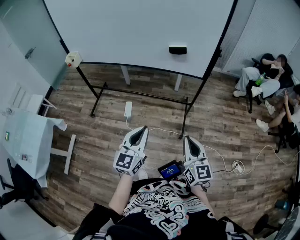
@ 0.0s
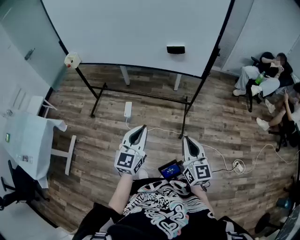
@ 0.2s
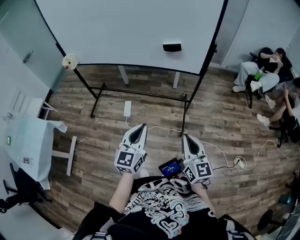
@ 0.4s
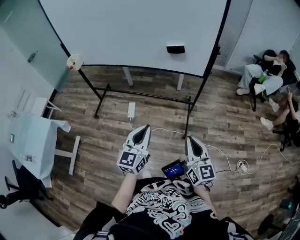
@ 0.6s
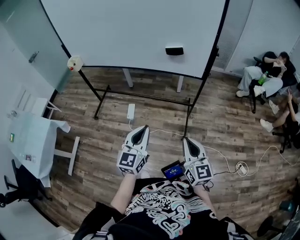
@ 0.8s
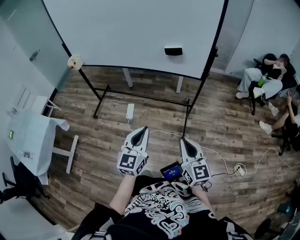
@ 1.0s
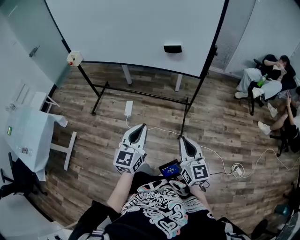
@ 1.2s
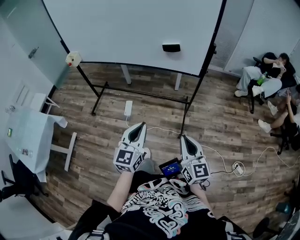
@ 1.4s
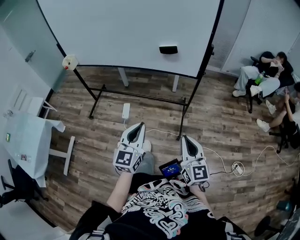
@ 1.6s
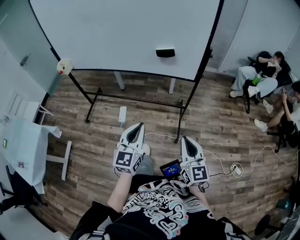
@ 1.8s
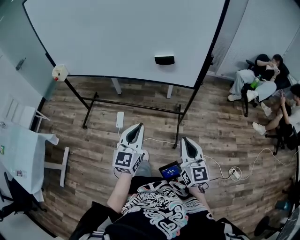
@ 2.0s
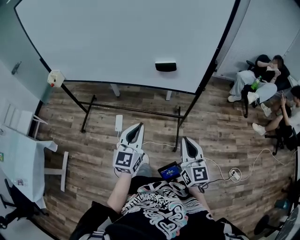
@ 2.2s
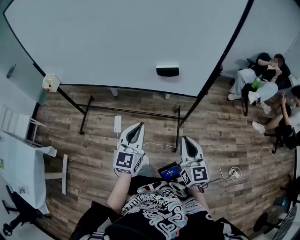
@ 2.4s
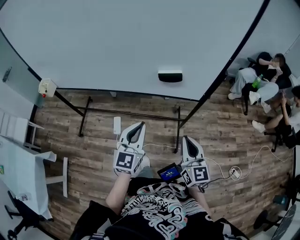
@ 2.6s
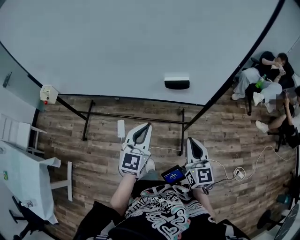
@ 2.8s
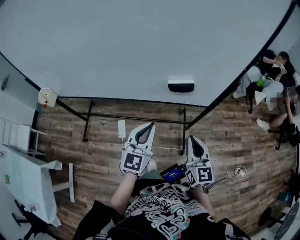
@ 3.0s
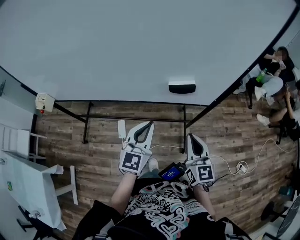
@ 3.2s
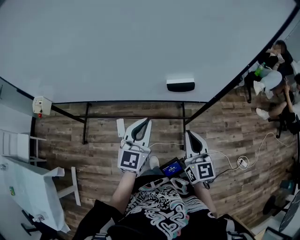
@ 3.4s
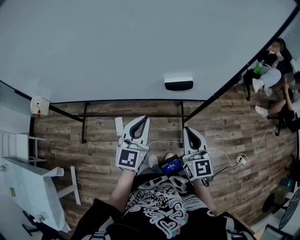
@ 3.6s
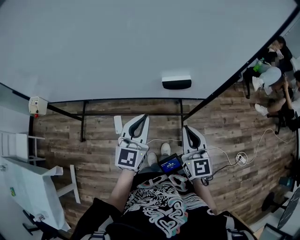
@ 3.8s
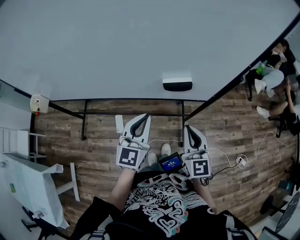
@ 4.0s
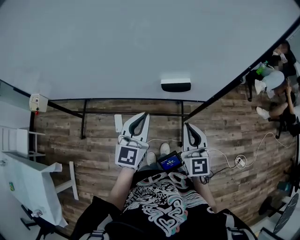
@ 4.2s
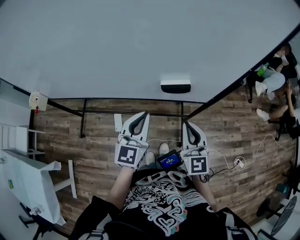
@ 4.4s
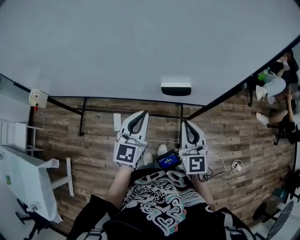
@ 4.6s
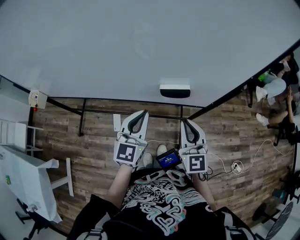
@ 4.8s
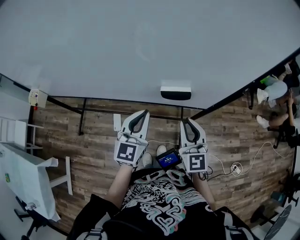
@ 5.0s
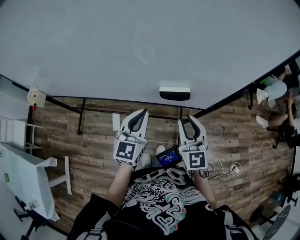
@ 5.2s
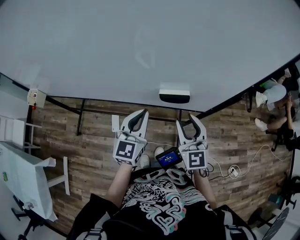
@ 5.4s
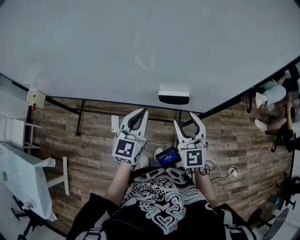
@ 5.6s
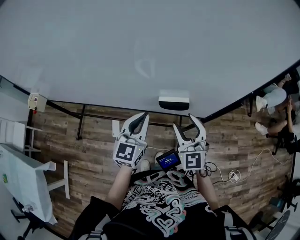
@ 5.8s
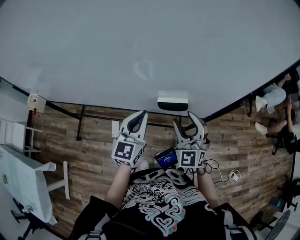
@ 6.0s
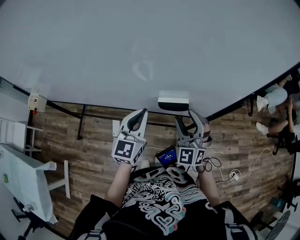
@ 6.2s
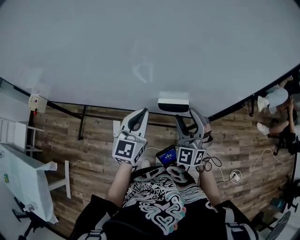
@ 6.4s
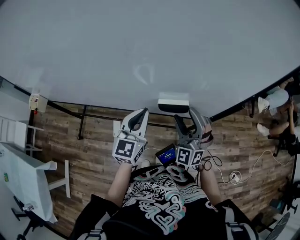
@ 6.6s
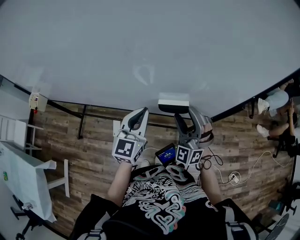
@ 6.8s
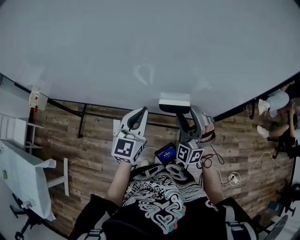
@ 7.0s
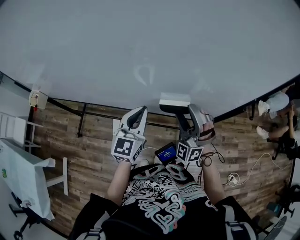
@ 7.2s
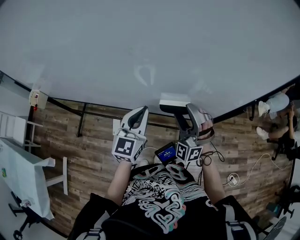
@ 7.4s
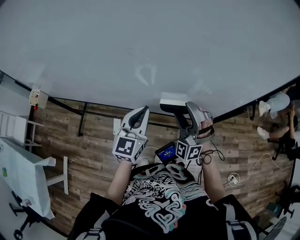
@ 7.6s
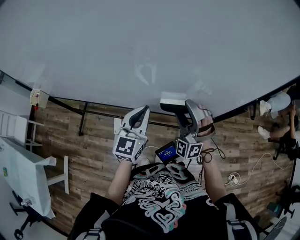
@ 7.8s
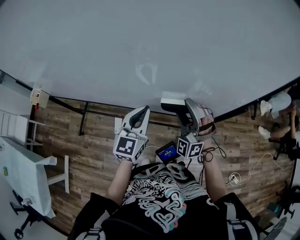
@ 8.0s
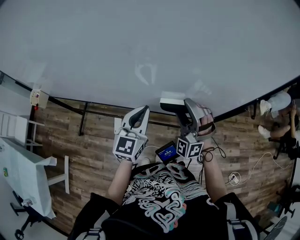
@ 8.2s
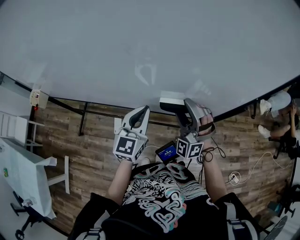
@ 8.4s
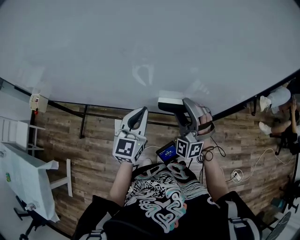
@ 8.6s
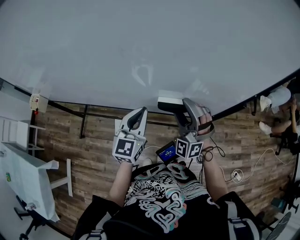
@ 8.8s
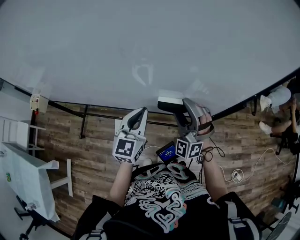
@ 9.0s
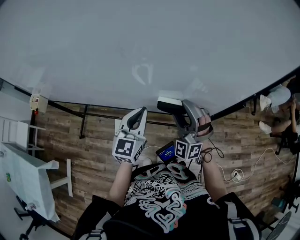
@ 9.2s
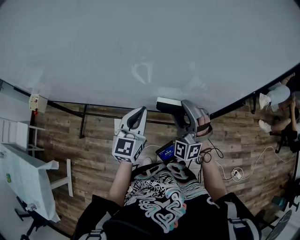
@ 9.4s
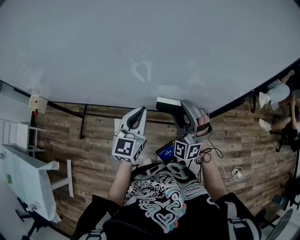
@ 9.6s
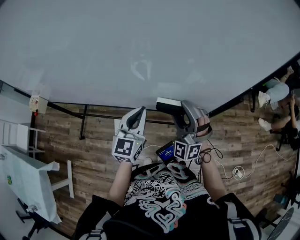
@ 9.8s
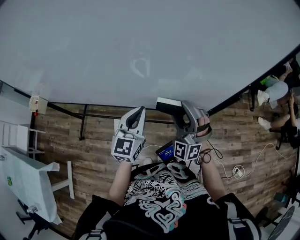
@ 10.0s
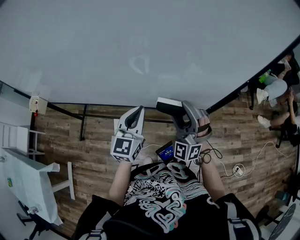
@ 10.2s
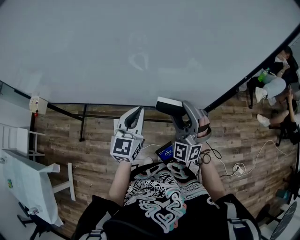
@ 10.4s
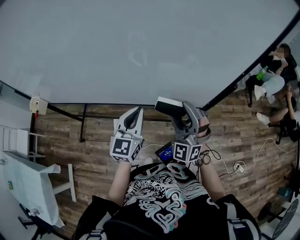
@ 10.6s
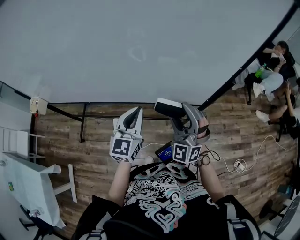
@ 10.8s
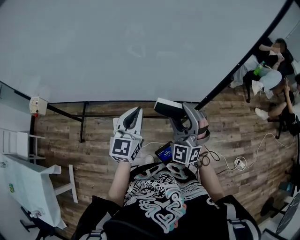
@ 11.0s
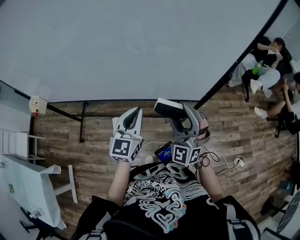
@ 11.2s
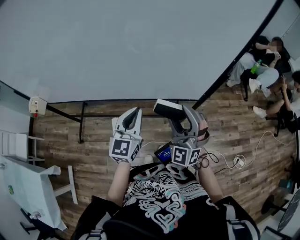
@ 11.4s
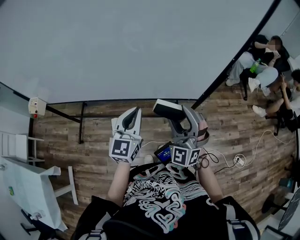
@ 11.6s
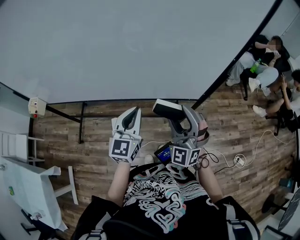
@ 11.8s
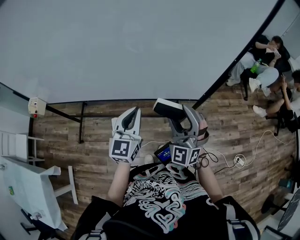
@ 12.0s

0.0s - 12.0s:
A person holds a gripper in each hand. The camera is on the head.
0.0s - 1.6s: The grippers stay close to where they were, moving slightly.
1.6s - 3.0s: Both grippers move forward, about 30 cm.
3.0s - 4.4s: Both grippers move forward, about 5 cm.
4.4s - 6.0s: Both grippers move forward, about 10 cm. The right gripper swivels about 30 degrees, and opens.
6.0s - 7.6s: The right gripper changes its angle by approximately 40 degrees, and opens.
7.6s - 9.0s: The two grippers keep their place.
9.0s - 10.4s: The right gripper is displaced backward by roughly 5 cm.
10.4s - 12.0s: The right gripper shifts about 5 cm backward. The left gripper moves about 5 cm.

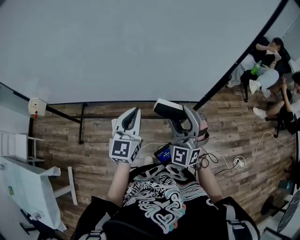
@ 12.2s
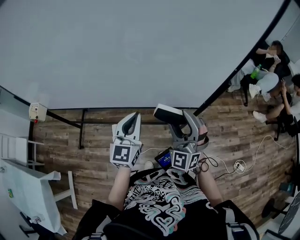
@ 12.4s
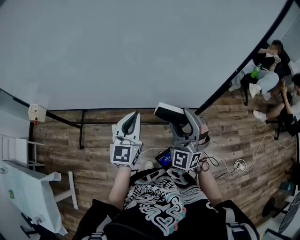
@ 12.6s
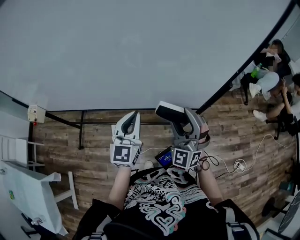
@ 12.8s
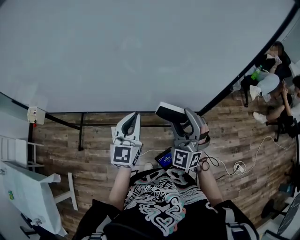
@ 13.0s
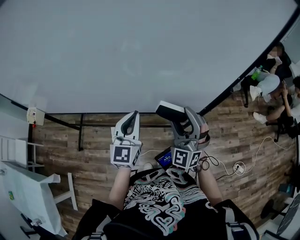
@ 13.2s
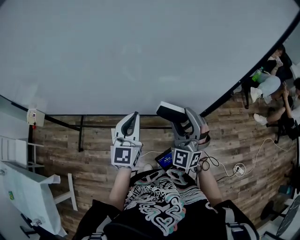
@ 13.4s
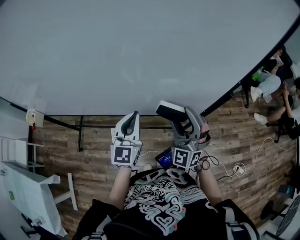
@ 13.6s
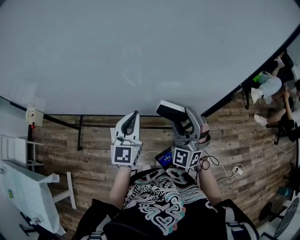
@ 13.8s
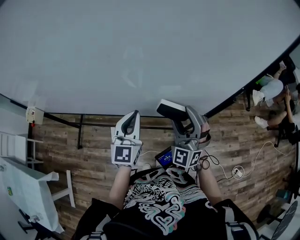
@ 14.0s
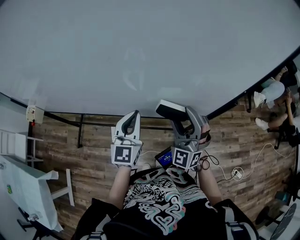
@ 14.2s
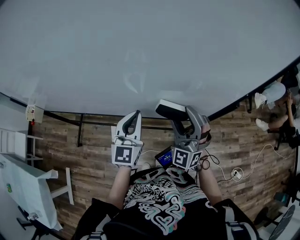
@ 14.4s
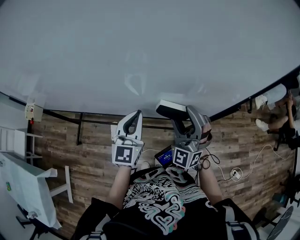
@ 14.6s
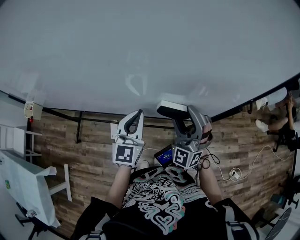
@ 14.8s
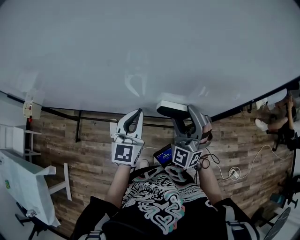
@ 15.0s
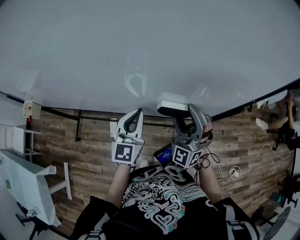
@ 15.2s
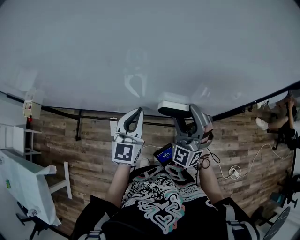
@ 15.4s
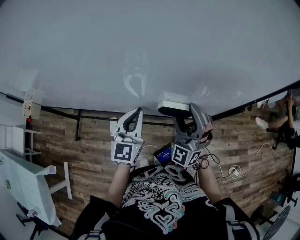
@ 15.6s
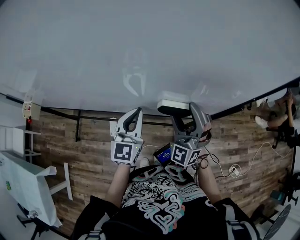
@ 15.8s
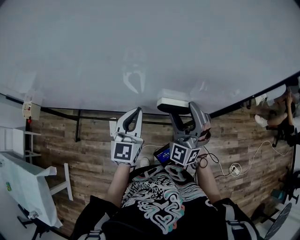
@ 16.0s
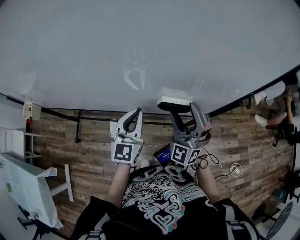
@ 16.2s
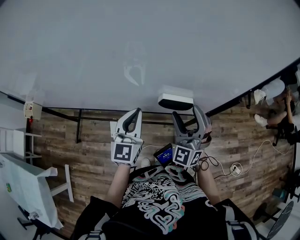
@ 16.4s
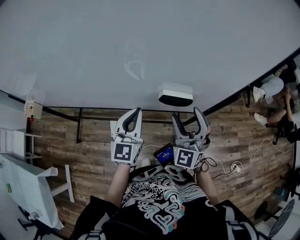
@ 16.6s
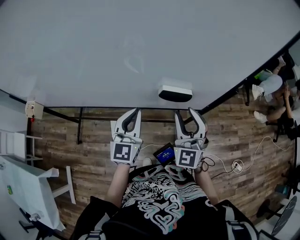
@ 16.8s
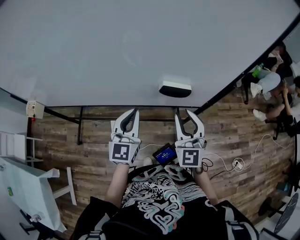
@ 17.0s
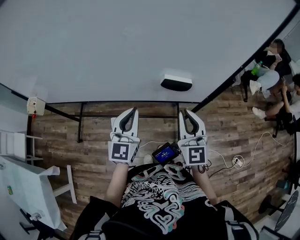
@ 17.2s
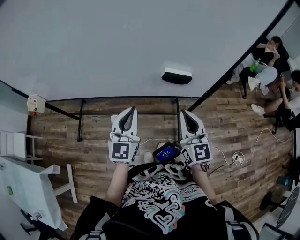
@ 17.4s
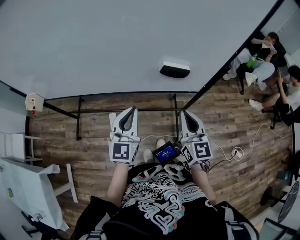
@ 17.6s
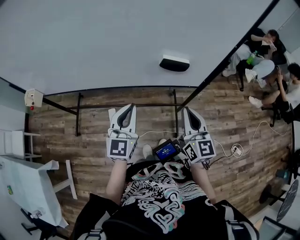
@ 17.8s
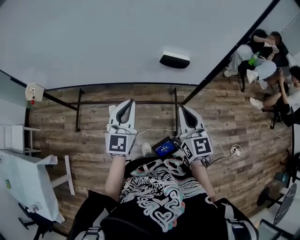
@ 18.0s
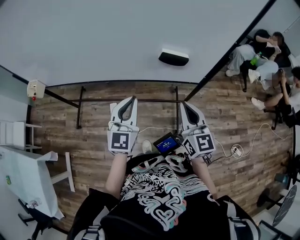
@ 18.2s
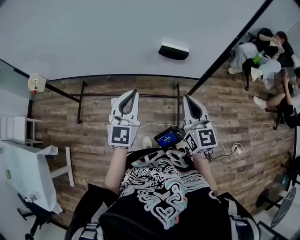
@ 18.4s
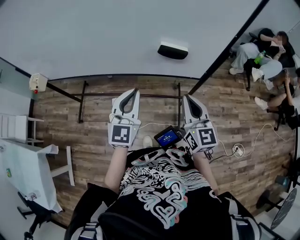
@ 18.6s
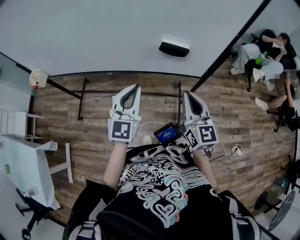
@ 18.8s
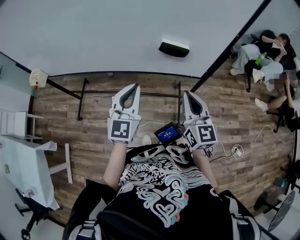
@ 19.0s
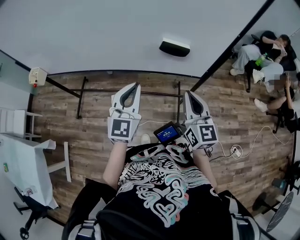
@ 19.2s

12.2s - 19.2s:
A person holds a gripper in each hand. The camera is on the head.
12.2s - 13.6s: Both grippers travel together forward, about 5 cm.
13.6s - 16.4s: The grippers stay close to where they were, moving slightly.
16.4s - 17.8s: The grippers both shift backward by about 15 cm. The right gripper rolls clockwise, seen from behind, by about 60 degrees, and closes up.
17.8s - 19.2s: The grippers stay close to where they were, moving slightly.

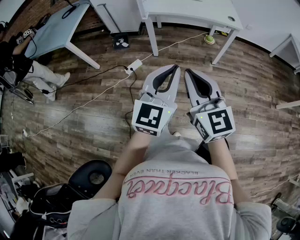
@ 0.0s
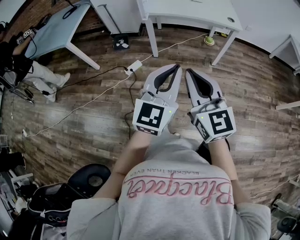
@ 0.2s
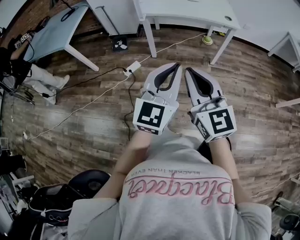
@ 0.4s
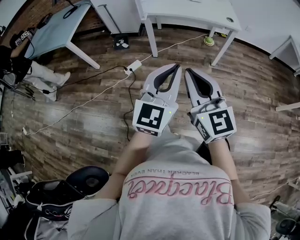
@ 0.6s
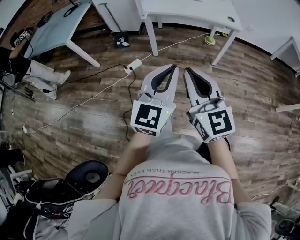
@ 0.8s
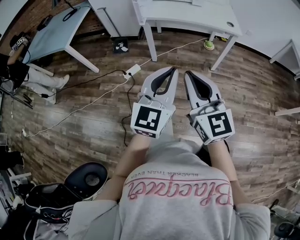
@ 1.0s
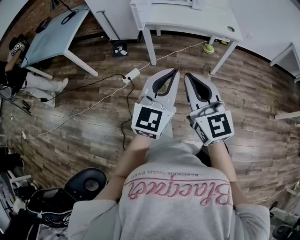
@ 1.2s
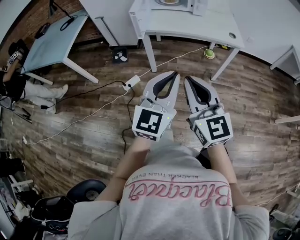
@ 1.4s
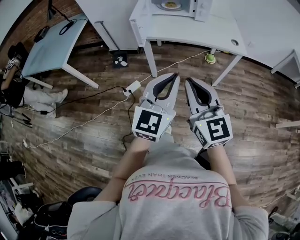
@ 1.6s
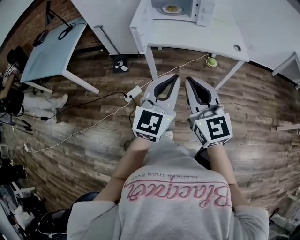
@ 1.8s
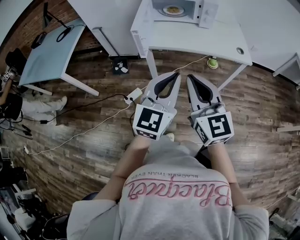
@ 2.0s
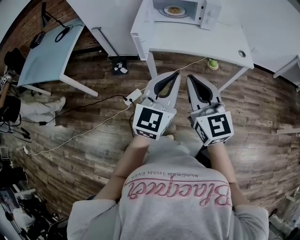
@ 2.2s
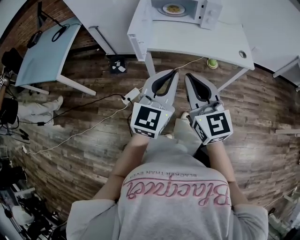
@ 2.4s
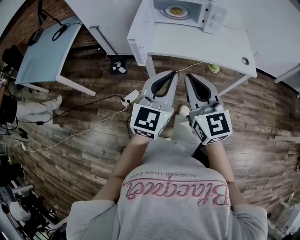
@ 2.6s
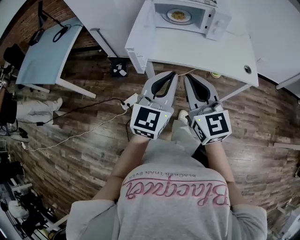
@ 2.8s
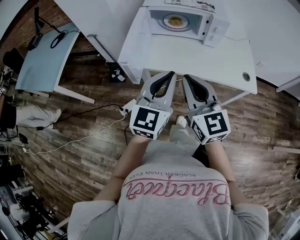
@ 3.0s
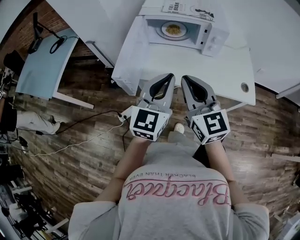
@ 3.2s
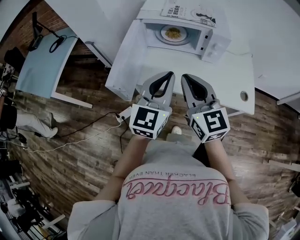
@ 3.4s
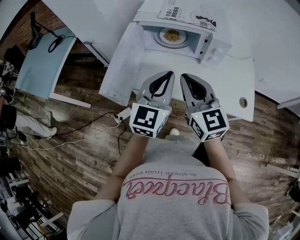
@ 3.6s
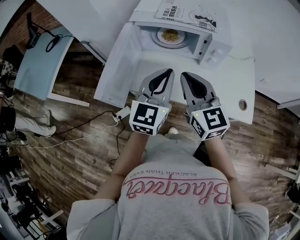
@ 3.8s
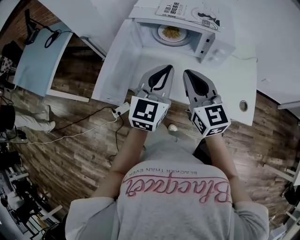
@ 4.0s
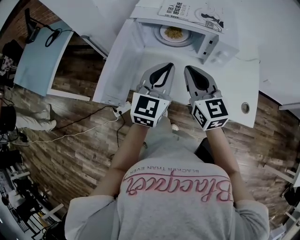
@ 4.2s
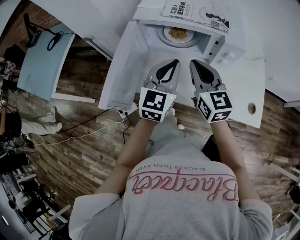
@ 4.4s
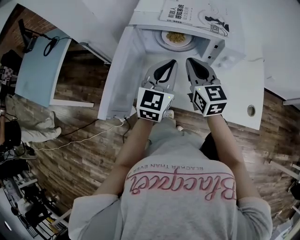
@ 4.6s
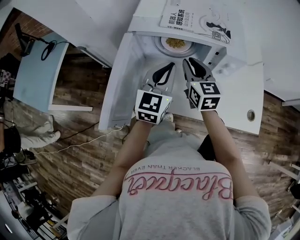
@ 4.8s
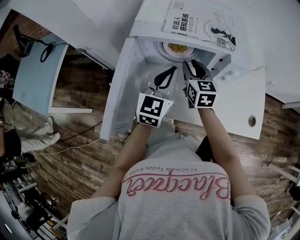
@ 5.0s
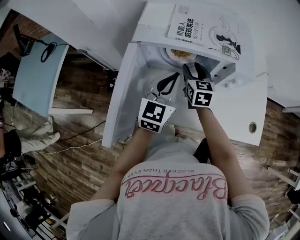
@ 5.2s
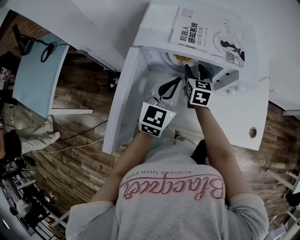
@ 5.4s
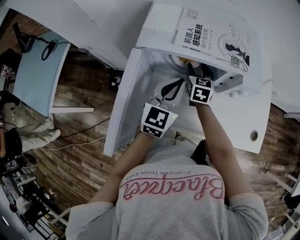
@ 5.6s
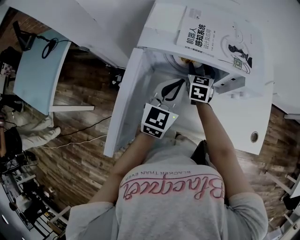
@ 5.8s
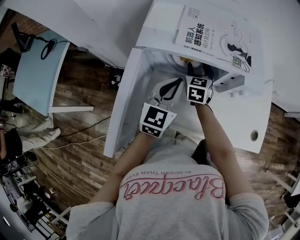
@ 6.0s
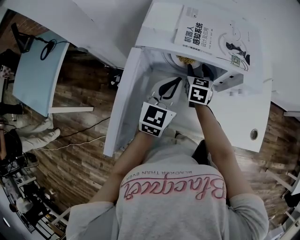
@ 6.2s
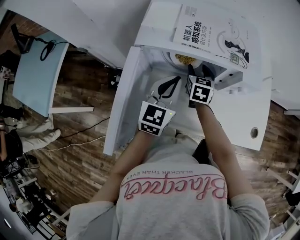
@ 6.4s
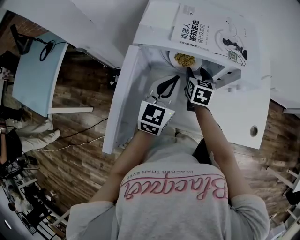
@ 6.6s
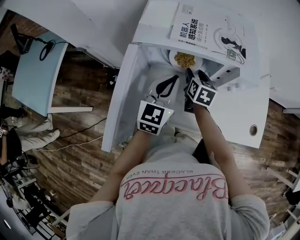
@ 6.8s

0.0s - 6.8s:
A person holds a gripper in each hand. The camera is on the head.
0.0s - 1.4s: Both grippers move forward, about 10 cm.
1.4s - 2.8s: Both grippers travel together forward, approximately 30 cm.
2.8s - 4.0s: Both grippers travel together forward, about 25 cm.
4.0s - 5.4s: The left gripper travels forward and downward by some 15 cm. Meanwhile the right gripper shifts roughly 30 cm forward and downward, turns by approximately 30 degrees, and opens its fingers.
5.4s - 6.8s: The grippers make only small movements.
